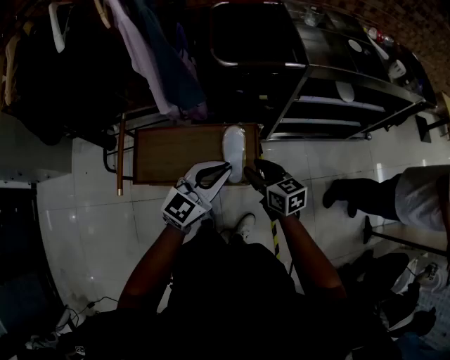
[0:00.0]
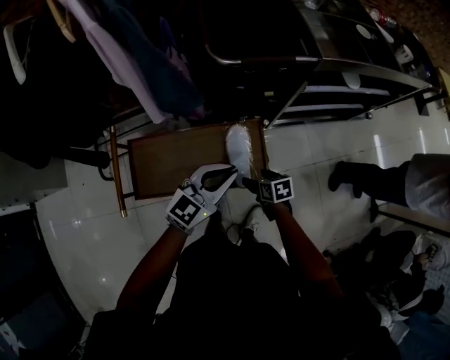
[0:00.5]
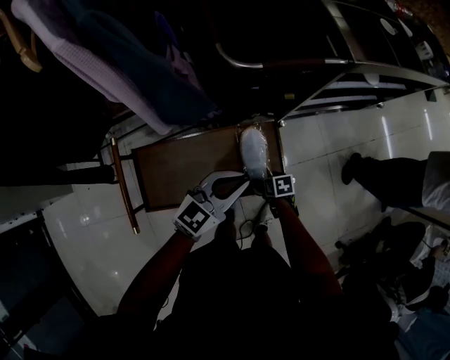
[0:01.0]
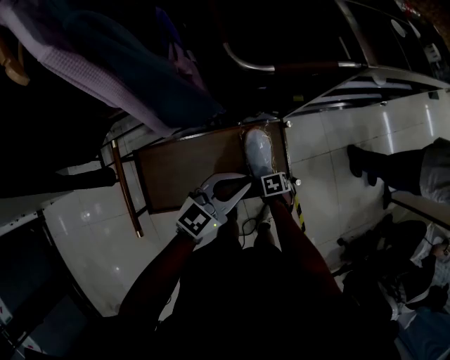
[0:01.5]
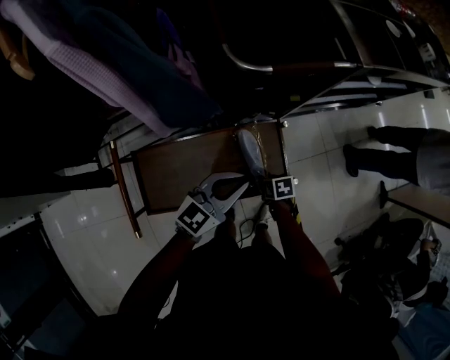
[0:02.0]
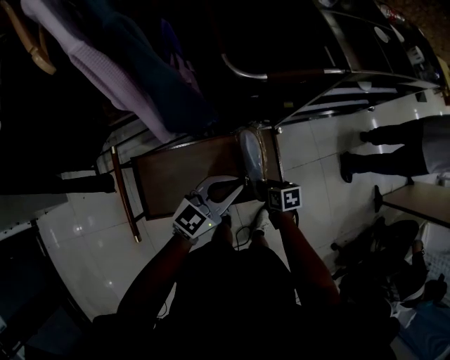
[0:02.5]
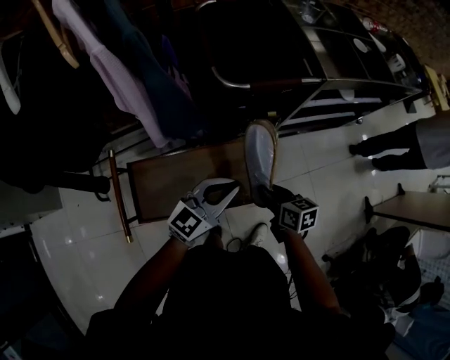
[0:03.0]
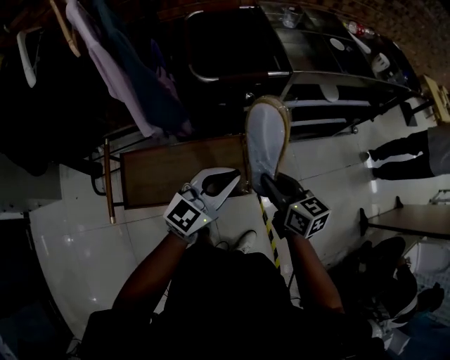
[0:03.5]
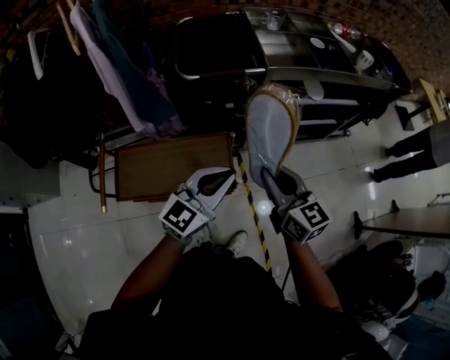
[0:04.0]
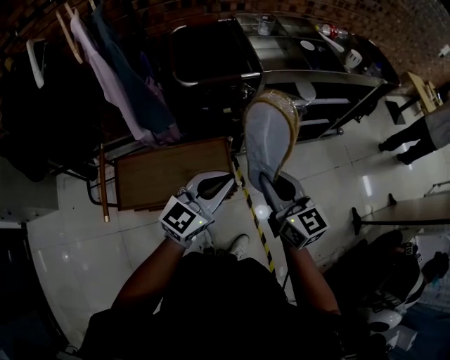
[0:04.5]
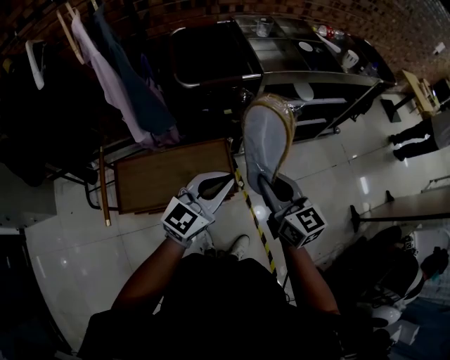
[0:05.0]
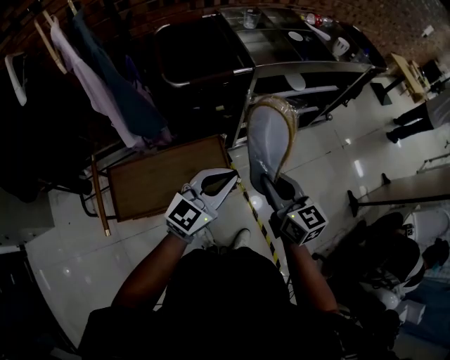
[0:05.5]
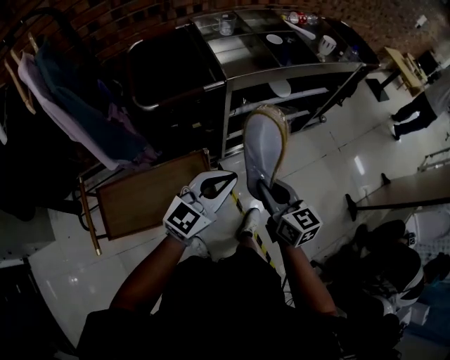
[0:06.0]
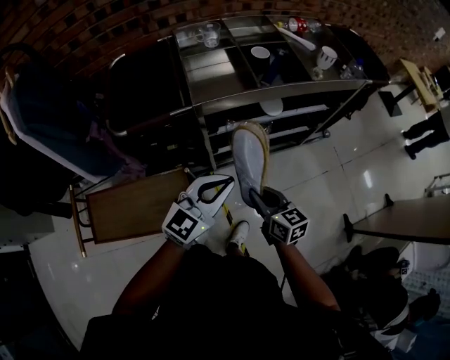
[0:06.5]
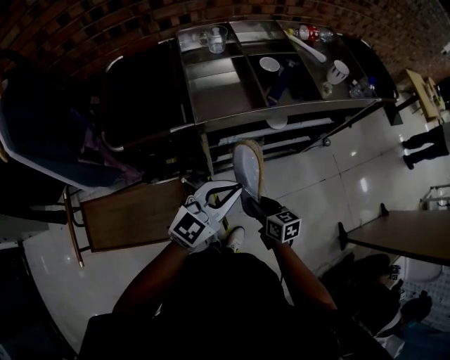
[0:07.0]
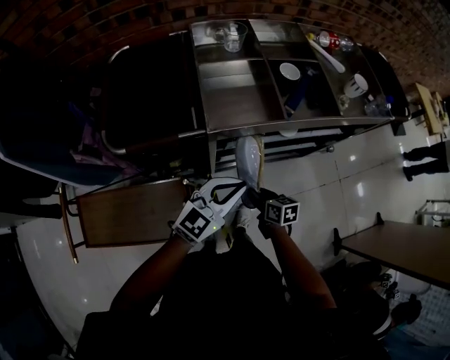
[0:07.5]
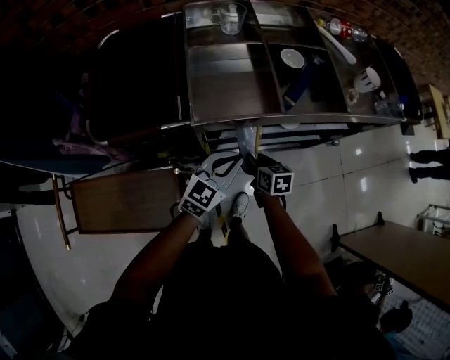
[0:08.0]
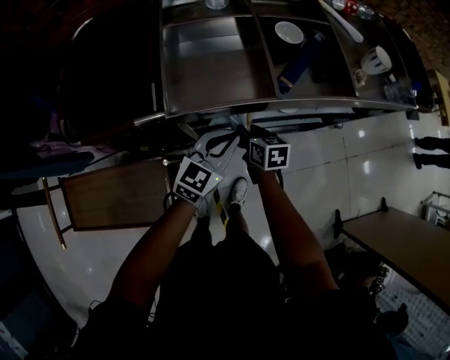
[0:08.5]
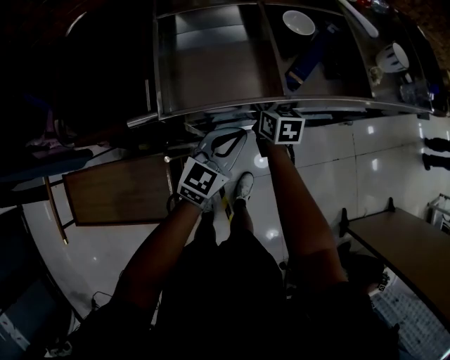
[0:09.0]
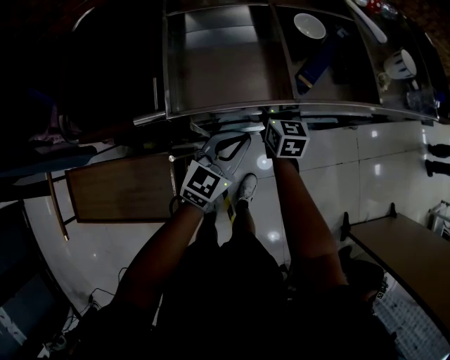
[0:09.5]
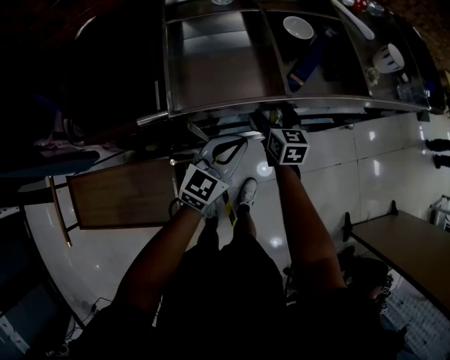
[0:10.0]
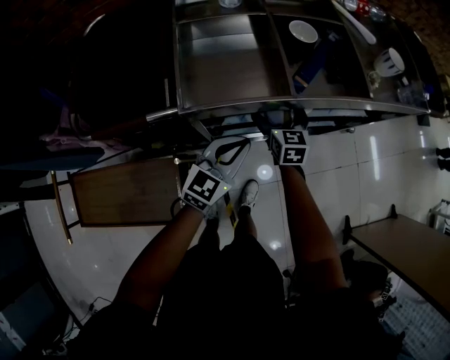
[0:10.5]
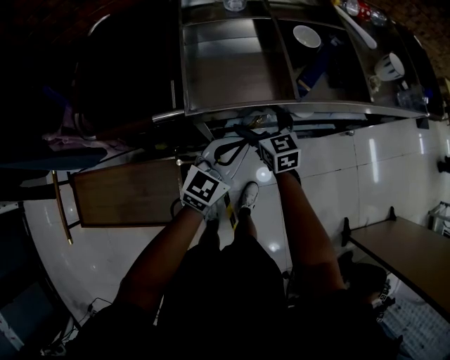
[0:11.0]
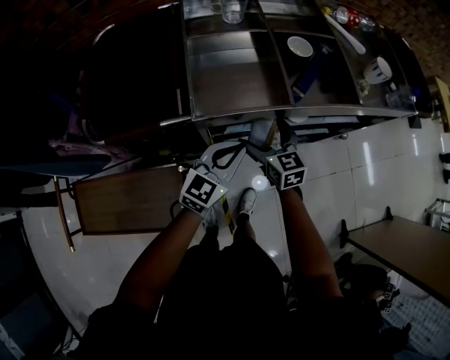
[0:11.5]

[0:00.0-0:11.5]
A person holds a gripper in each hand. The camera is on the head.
0:00.0 to 0:02.0: The left gripper moves some 15 cm. Meanwhile the right gripper moves downward, about 30 cm, tilts its fingers approximately 40 degrees downward, and opens, then closes again.
0:02.0 to 0:04.0: The right gripper goes approximately 40 cm upward, and angles its fingers upward, by some 60 degrees, while the left gripper moves to the right, upward and backward, approximately 25 cm.
0:04.0 to 0:06.0: The left gripper travels forward and to the right by some 10 cm, while the right gripper shifts some 10 cm to the right and downward.
0:06.0 to 0:07.5: The left gripper goes about 25 cm forward and to the right. Meanwhile the right gripper goes some 30 cm forward and downward, and turns by roughly 30 degrees.
0:07.5 to 0:09.5: The right gripper moves forward, about 25 cm, and rotates approximately 30 degrees. Meanwhile the left gripper travels downward and forward by roughly 20 cm.
0:09.5 to 0:11.5: The right gripper goes some 10 cm backward and upward, and opens up. The left gripper travels upward by some 5 cm.

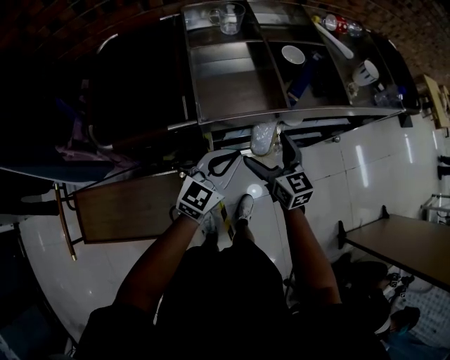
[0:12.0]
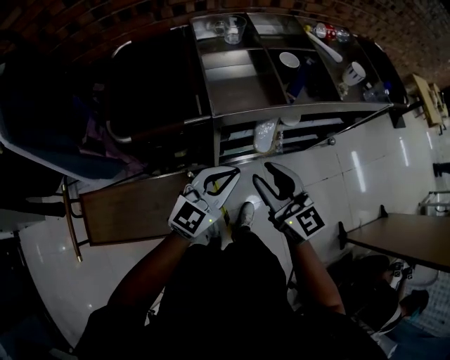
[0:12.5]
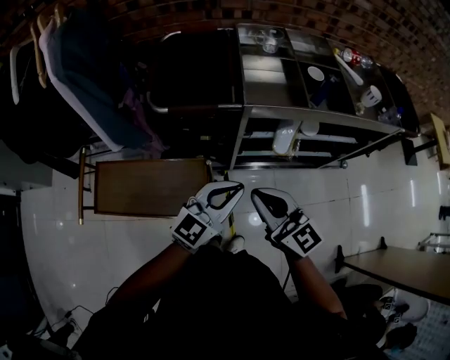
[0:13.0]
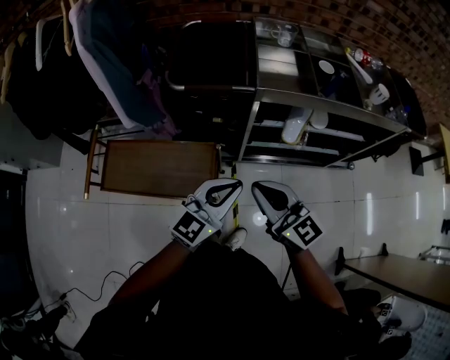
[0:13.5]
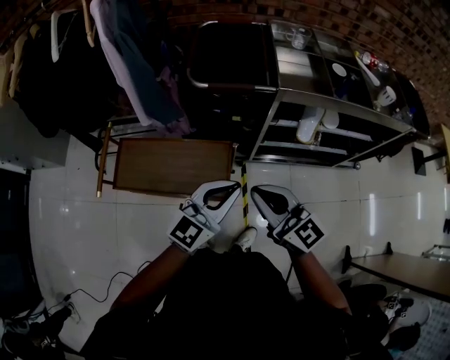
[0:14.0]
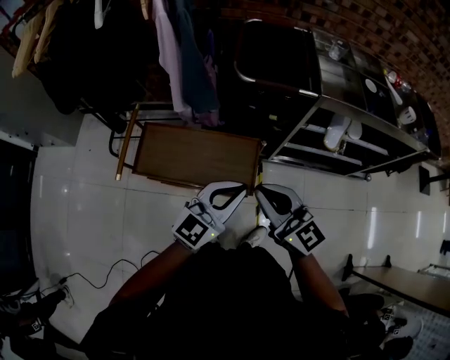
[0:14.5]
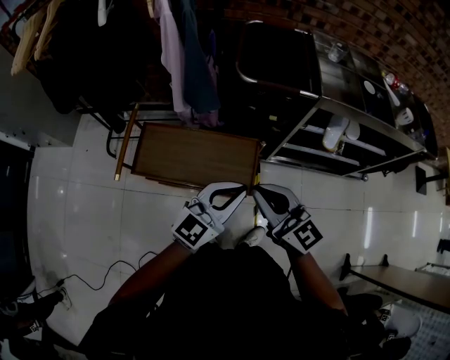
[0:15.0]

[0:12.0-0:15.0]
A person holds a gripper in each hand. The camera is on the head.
0:12.0 to 0:13.5: The right gripper moves backward, upward and to the left, about 35 cm, rotates about 30 degrees, and closes up; the left gripper shifts some 30 cm backward and upward.
0:13.5 to 0:15.0: The two grippers go roughly 20 cm to the left.

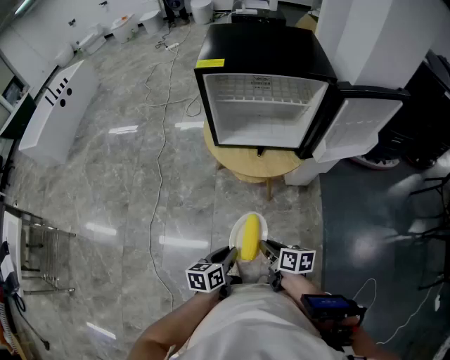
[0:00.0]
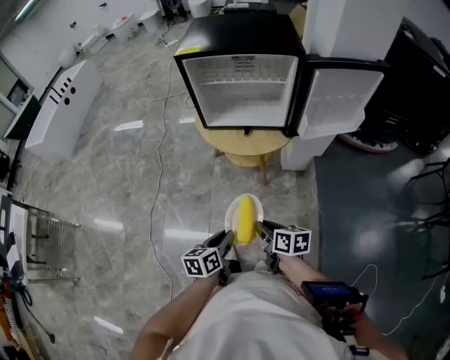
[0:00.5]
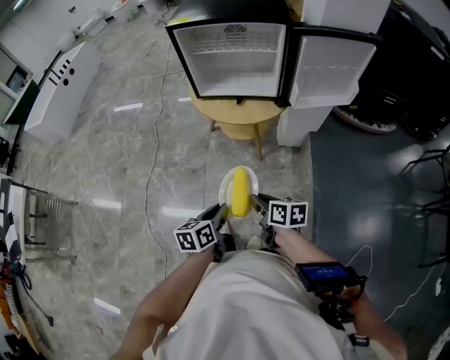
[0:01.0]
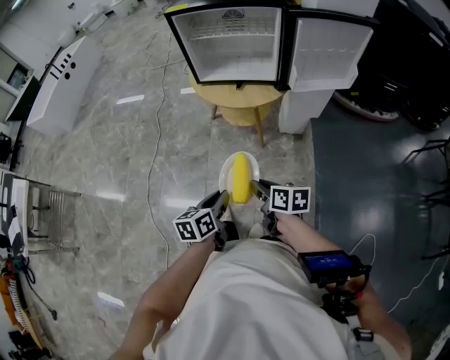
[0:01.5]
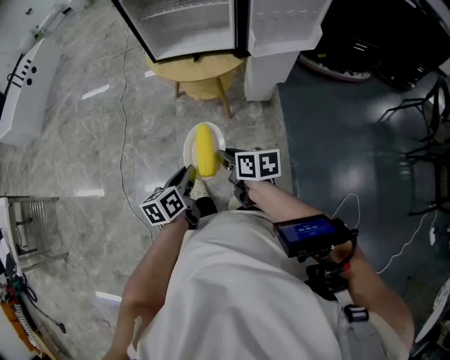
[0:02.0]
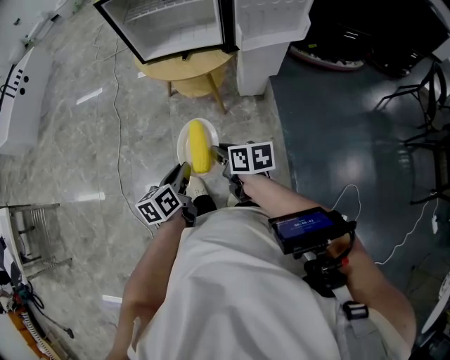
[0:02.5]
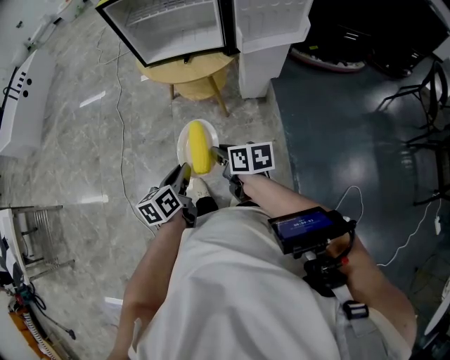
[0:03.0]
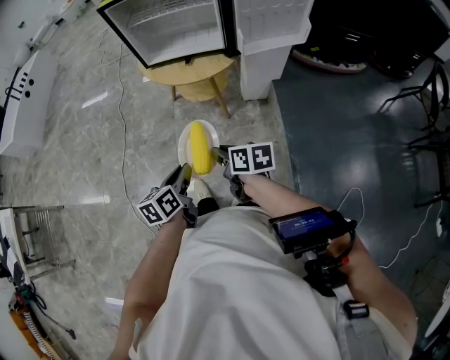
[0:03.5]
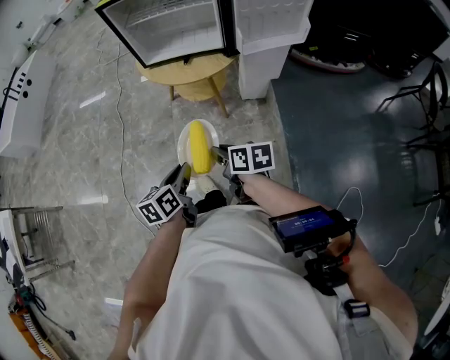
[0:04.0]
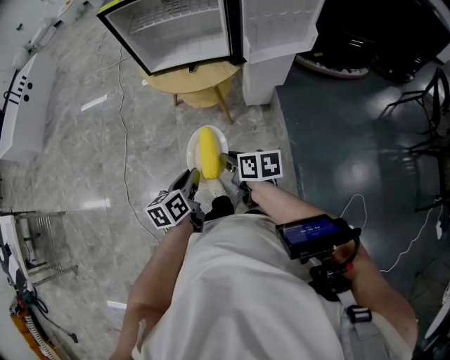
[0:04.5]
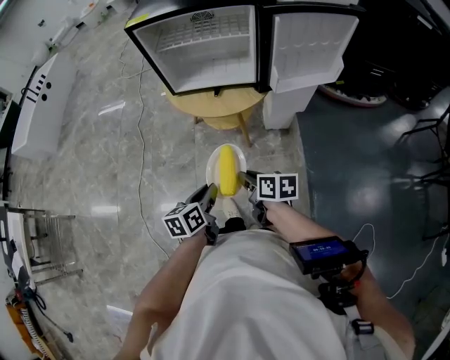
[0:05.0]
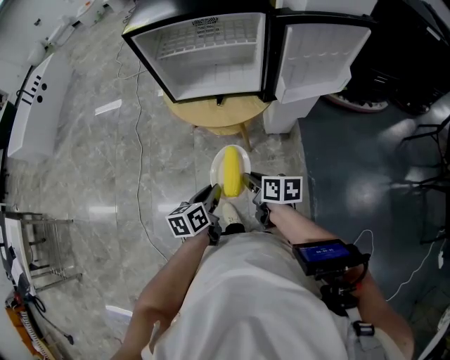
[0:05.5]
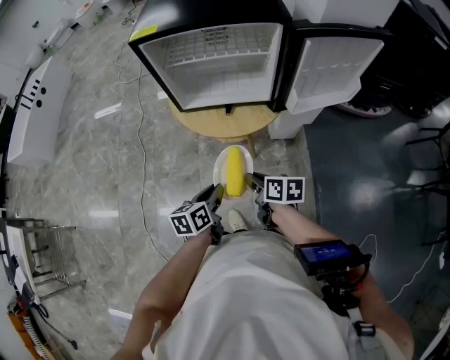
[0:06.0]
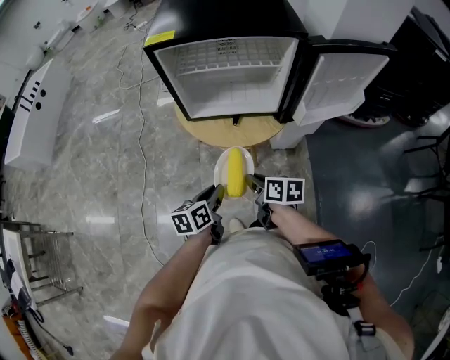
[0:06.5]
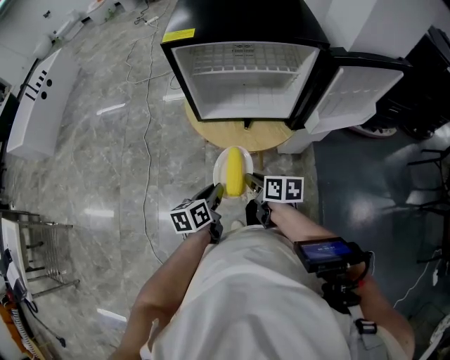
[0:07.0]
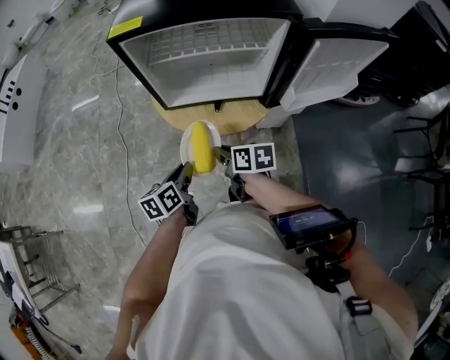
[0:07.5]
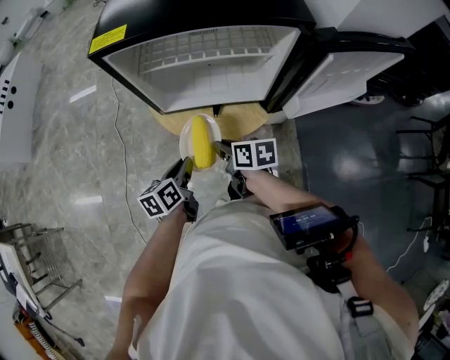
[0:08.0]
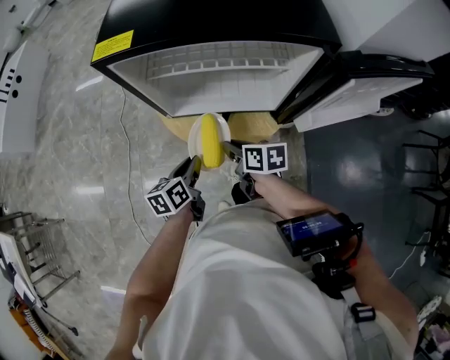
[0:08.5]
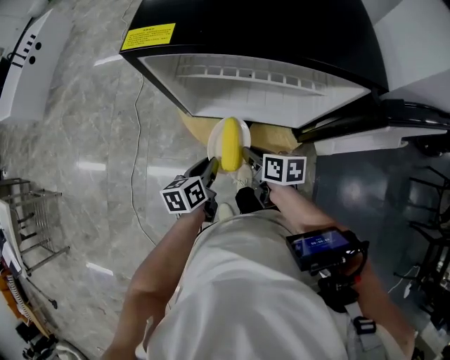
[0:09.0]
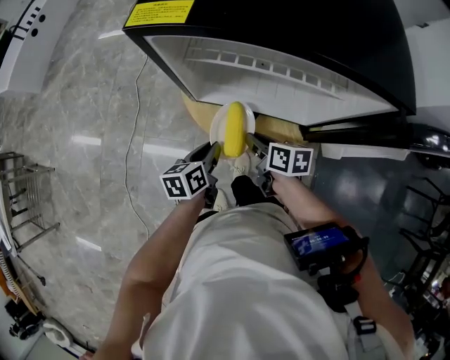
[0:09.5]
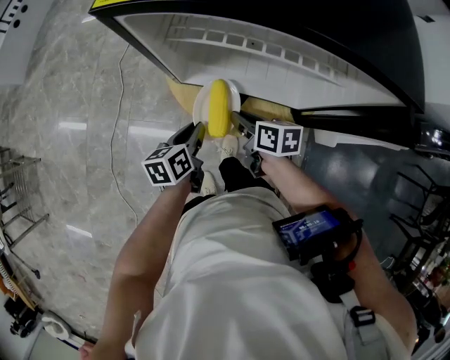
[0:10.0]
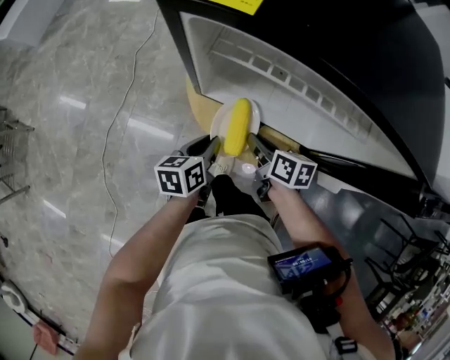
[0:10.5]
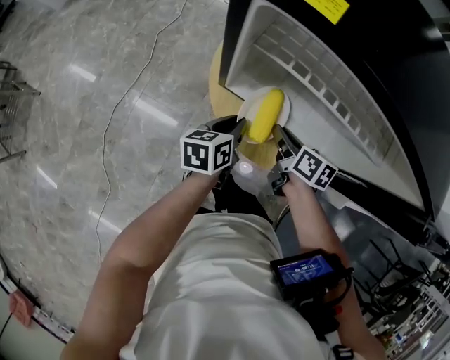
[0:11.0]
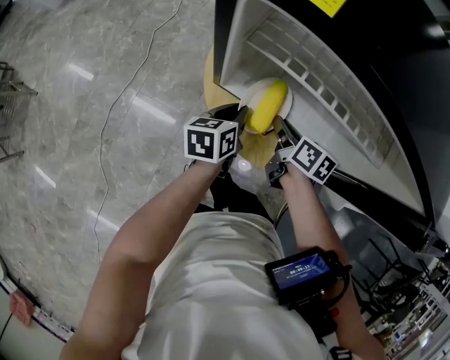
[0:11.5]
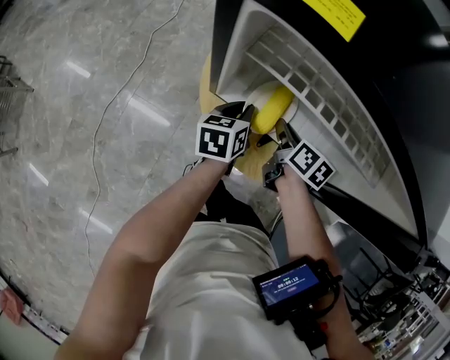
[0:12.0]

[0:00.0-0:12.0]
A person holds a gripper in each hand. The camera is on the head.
0:00.0 to 0:02.0: The two grippers go some 15 cm backward and to the right.
0:02.0 to 0:04.0: The two grippers keep their place.
0:04.0 to 0:06.0: Both grippers travel together forward, roughly 20 cm.
0:06.0 to 0:08.0: Both grippers move forward, roughly 15 cm.
0:08.0 to 0:10.0: Both grippers travel together forward and downward, some 10 cm.
0:10.0 to 0:12.0: The left gripper heads forward, covering about 15 cm. Meanwhile the right gripper is displaced forward and to the right by some 10 cm.
